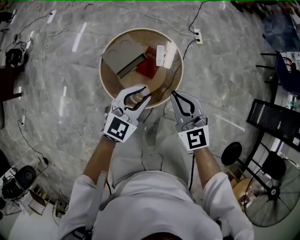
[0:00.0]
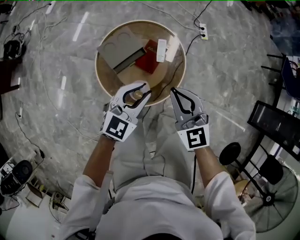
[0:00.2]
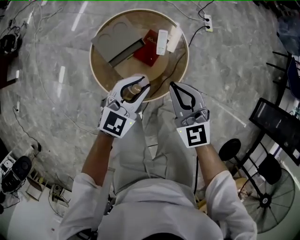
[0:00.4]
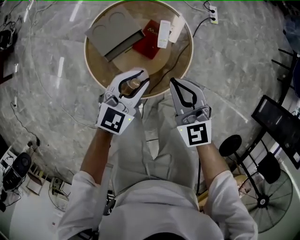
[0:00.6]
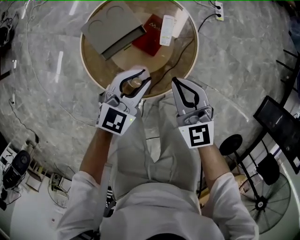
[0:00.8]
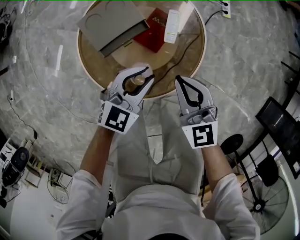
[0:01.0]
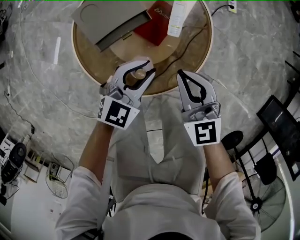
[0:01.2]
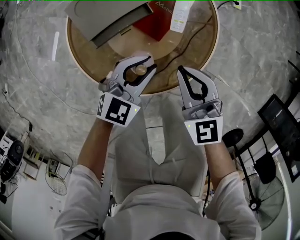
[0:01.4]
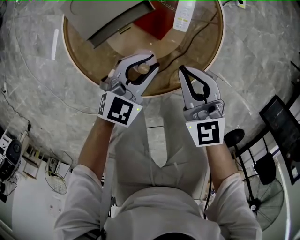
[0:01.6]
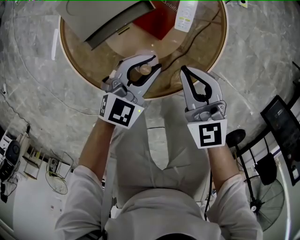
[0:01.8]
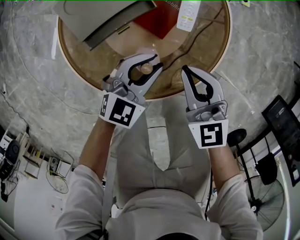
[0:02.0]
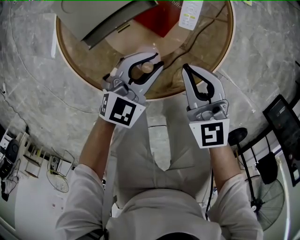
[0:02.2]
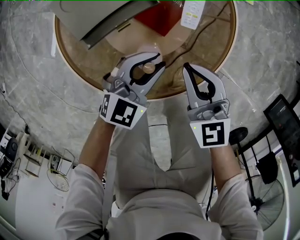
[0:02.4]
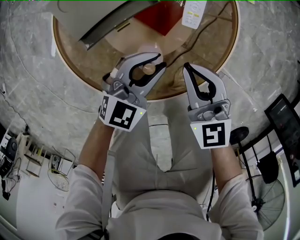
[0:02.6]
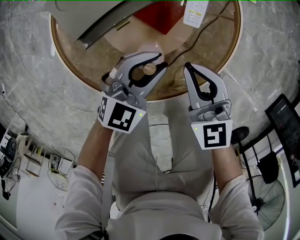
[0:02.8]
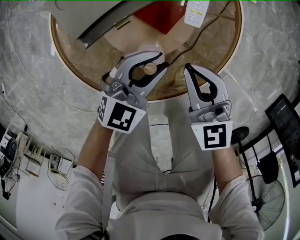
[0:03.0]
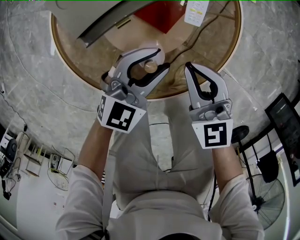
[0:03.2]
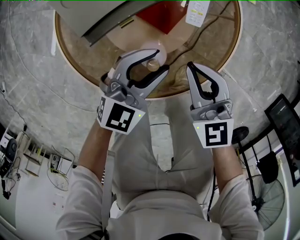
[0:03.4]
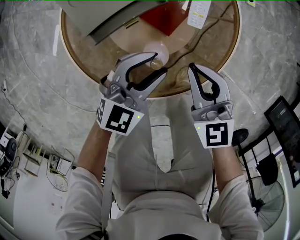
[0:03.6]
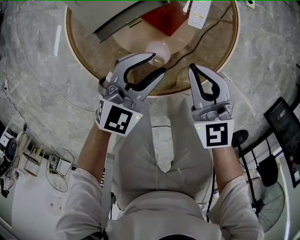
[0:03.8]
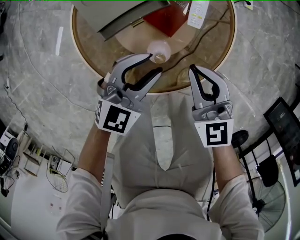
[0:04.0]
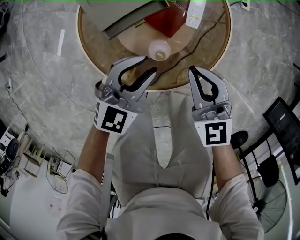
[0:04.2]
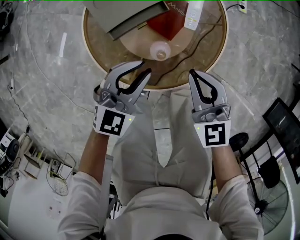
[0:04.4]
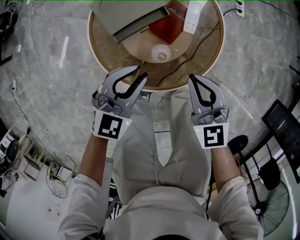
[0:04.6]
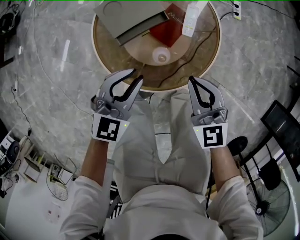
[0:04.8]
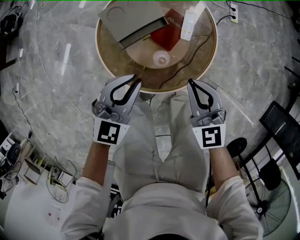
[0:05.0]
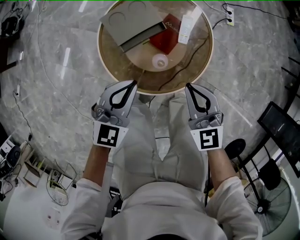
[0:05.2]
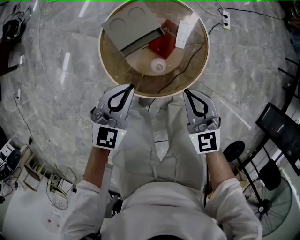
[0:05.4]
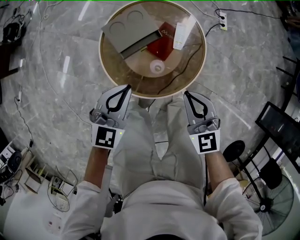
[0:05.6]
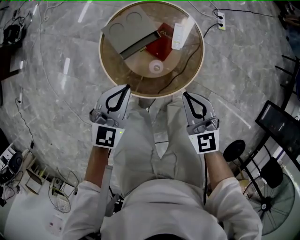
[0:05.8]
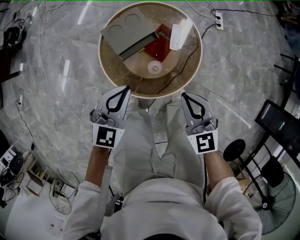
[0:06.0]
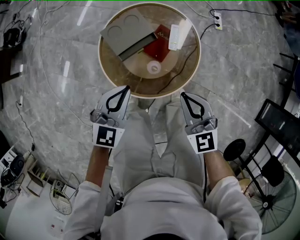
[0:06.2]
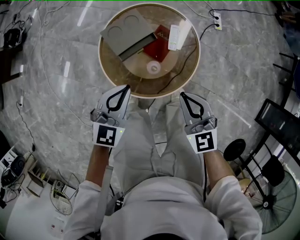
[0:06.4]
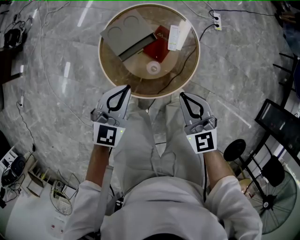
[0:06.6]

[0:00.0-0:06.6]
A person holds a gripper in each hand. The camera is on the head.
0:00.0 to 0:01.6: The grippers both shift downward by some 35 cm.
0:01.6 to 0:03.2: The right gripper travels downward by roughly 5 cm.
0:03.2 to 0:05.0: The right gripper shifts about 20 cm upward. The left gripper goes approximately 25 cm upward and to the left, and closes.
0:05.0 to 0:06.6: The two grippers go some 10 cm upward.

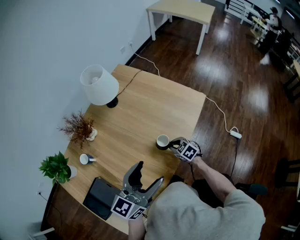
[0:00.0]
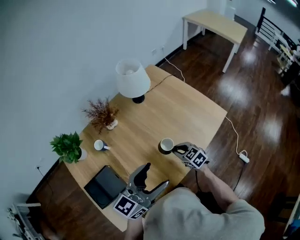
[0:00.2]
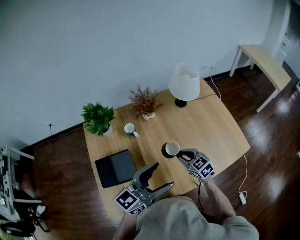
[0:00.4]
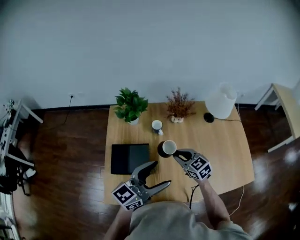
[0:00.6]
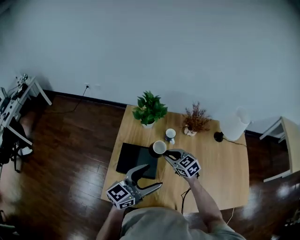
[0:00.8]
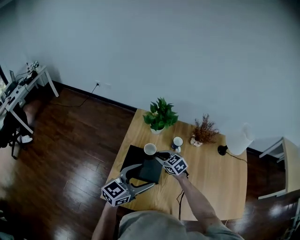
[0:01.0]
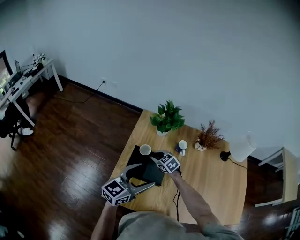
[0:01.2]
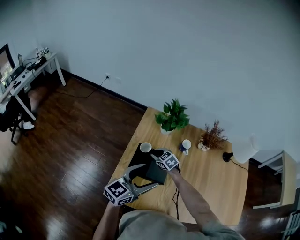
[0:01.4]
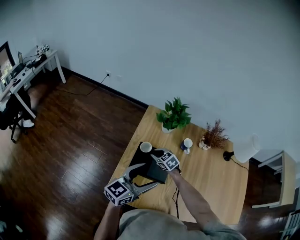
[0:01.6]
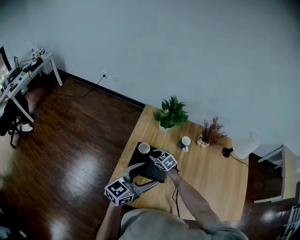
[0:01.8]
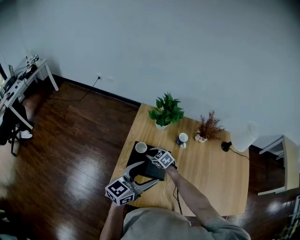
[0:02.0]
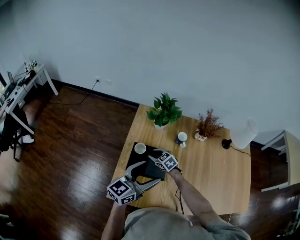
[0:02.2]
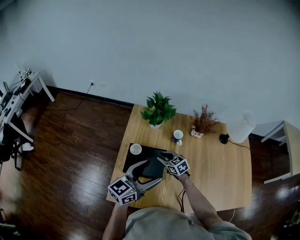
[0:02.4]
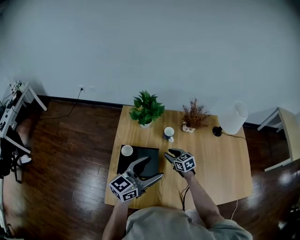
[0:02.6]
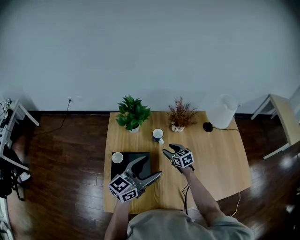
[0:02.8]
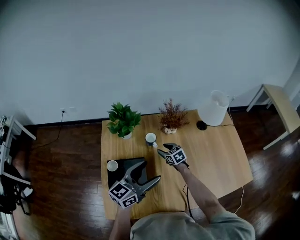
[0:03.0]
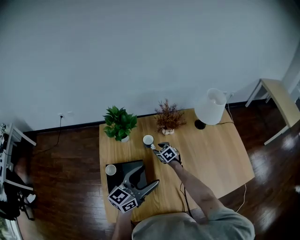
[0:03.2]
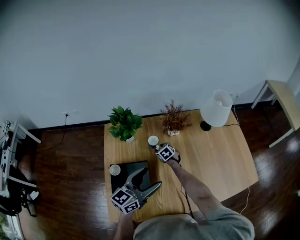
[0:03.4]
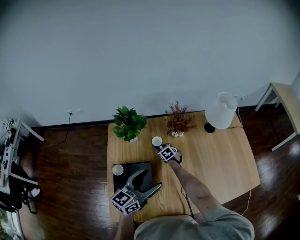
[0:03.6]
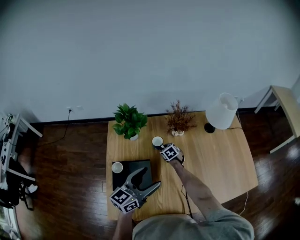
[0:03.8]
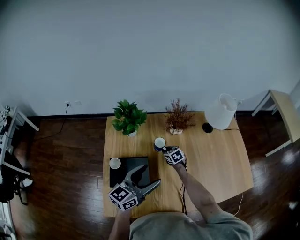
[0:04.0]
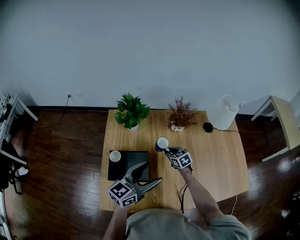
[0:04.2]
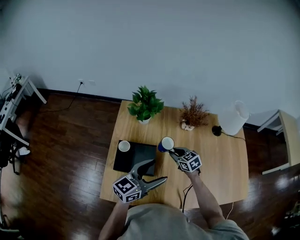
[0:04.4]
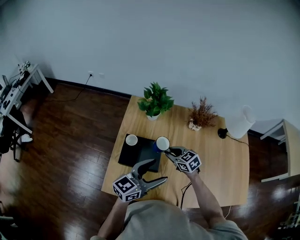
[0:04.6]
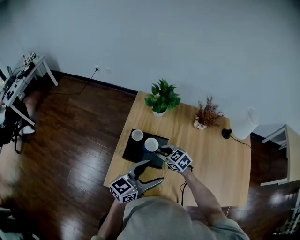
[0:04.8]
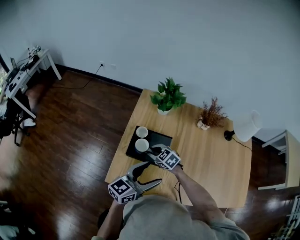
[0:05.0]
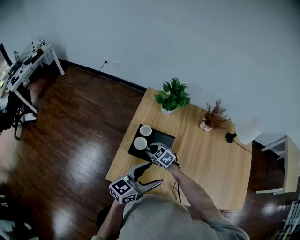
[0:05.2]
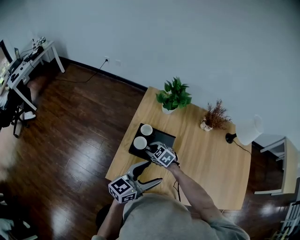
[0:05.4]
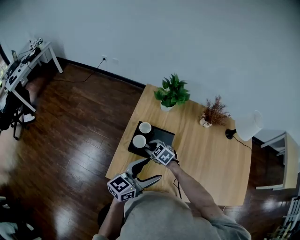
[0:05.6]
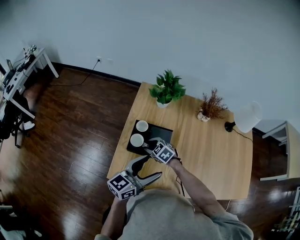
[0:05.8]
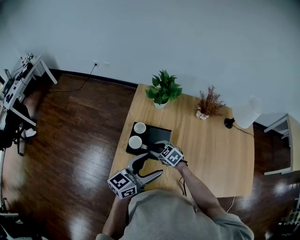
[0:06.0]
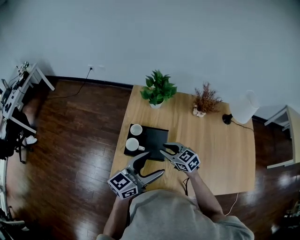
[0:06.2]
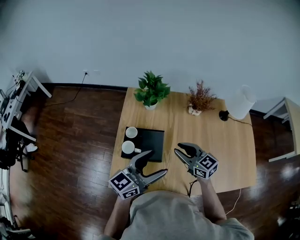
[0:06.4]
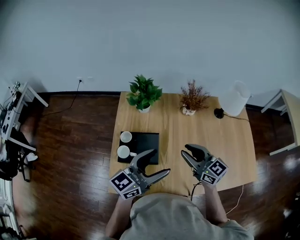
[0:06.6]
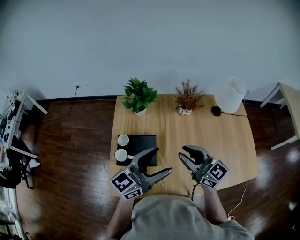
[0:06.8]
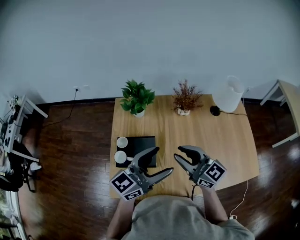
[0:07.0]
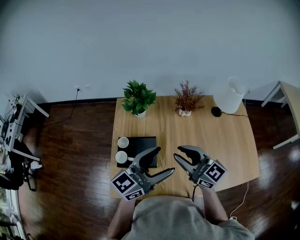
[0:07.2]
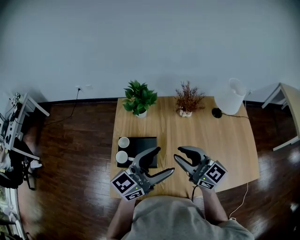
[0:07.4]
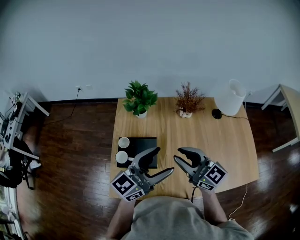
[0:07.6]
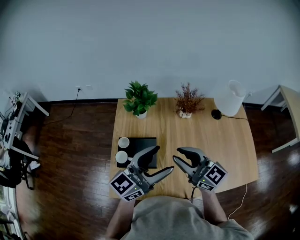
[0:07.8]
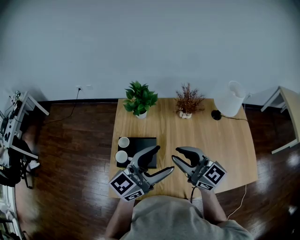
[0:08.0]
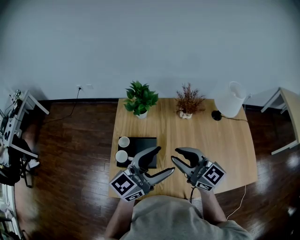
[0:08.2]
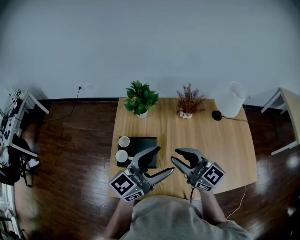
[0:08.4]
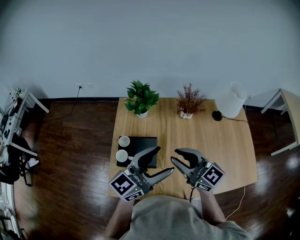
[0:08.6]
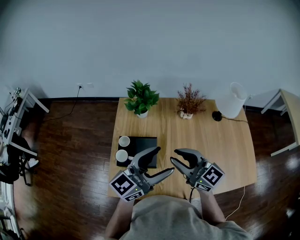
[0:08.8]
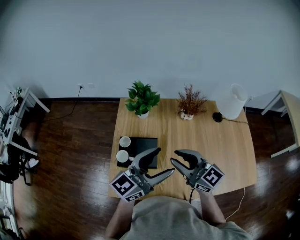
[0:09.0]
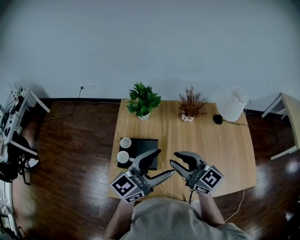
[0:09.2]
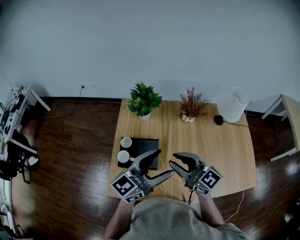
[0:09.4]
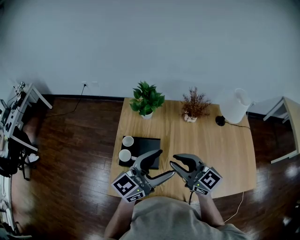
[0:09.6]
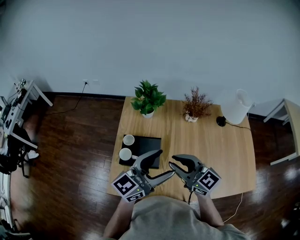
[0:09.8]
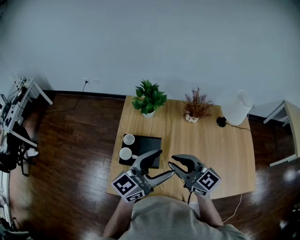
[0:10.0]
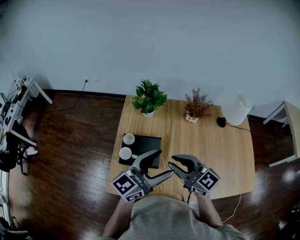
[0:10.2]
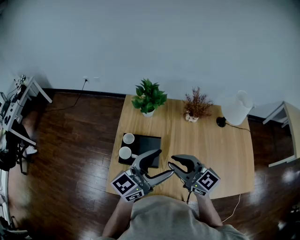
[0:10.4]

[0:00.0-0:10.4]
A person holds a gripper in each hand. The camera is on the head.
0:00.0 to 0:01.4: Both grippers are carried roughly 50 cm. The left gripper rotates roughly 50 degrees, while the right gripper swivels about 70 degrees.
0:01.4 to 0:03.0: The left gripper shifts by some 15 cm. The right gripper changes place by about 25 cm, rotates approximately 40 degrees, and opens up.
0:03.0 to 0:04.4: The right gripper heads backward, covering approximately 10 cm, and closes its fingers.
0:04.4 to 0:06.0: The left gripper travels to the left by approximately 10 cm. The right gripper heads to the left, covering some 20 cm, swivels approximately 30 degrees, and opens.
0:06.0 to 0:07.4: The right gripper moves upward and to the right, approximately 35 cm, and tips its fingers upward by about 50 degrees; the left gripper moves to the right and upward, roughly 15 cm.
0:07.4 to 0:10.4: The grippers make only small movements.

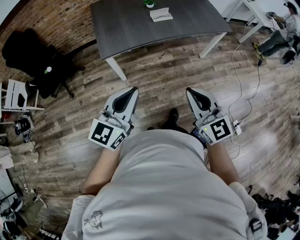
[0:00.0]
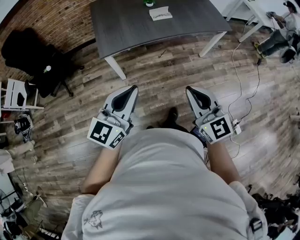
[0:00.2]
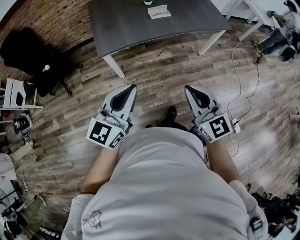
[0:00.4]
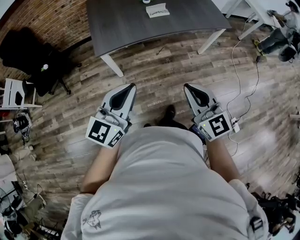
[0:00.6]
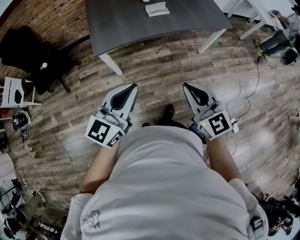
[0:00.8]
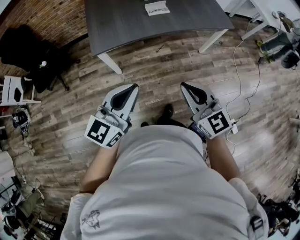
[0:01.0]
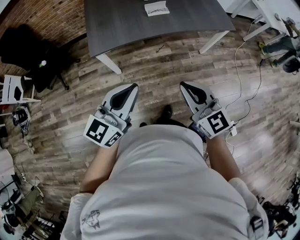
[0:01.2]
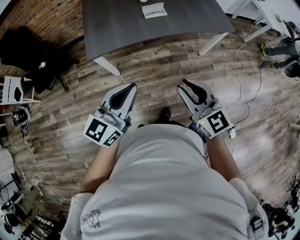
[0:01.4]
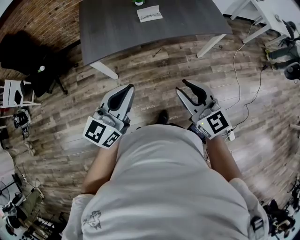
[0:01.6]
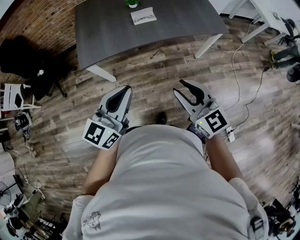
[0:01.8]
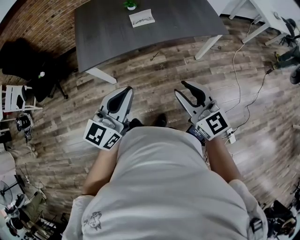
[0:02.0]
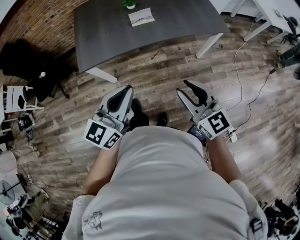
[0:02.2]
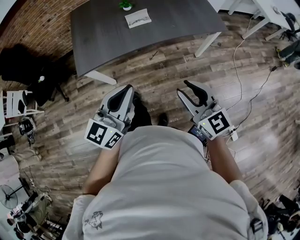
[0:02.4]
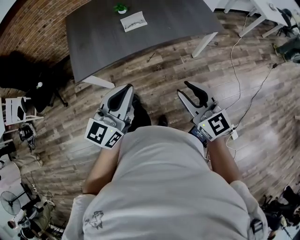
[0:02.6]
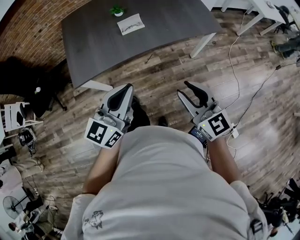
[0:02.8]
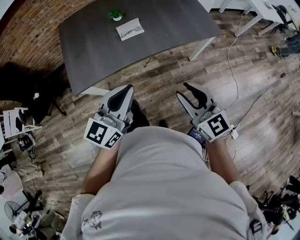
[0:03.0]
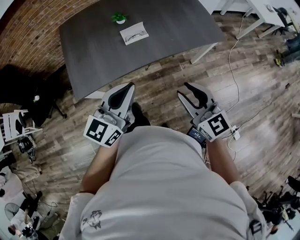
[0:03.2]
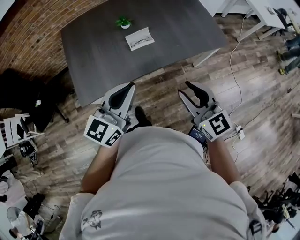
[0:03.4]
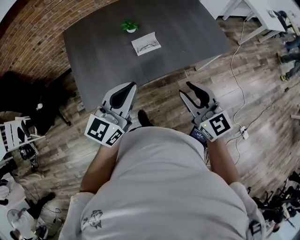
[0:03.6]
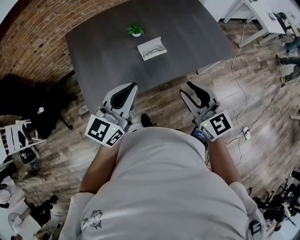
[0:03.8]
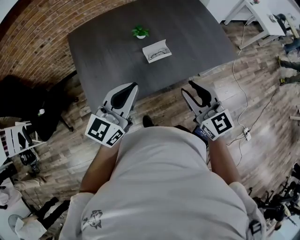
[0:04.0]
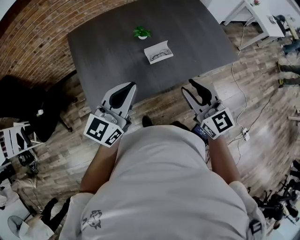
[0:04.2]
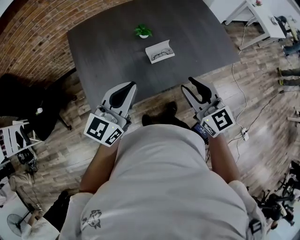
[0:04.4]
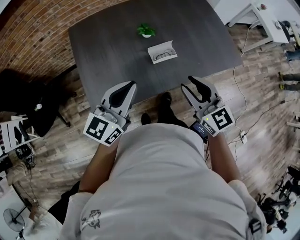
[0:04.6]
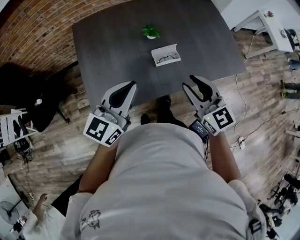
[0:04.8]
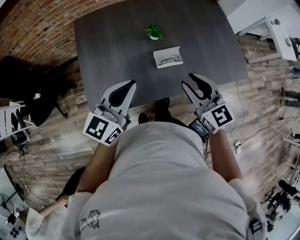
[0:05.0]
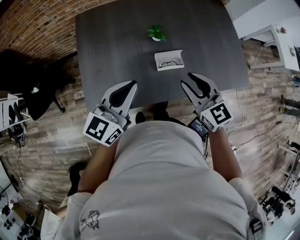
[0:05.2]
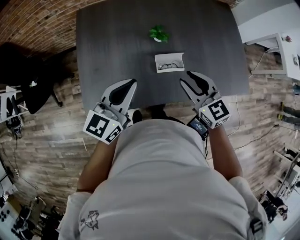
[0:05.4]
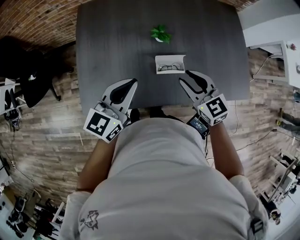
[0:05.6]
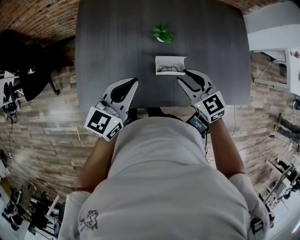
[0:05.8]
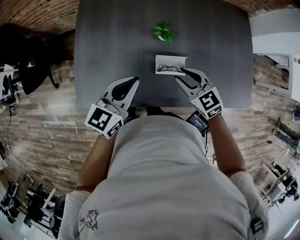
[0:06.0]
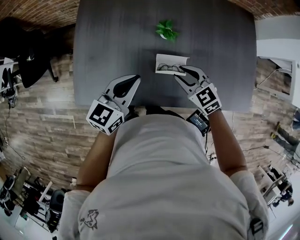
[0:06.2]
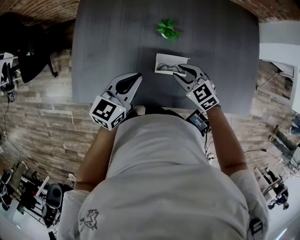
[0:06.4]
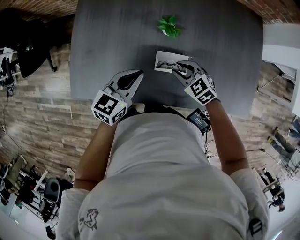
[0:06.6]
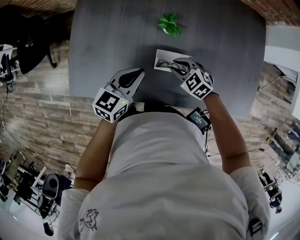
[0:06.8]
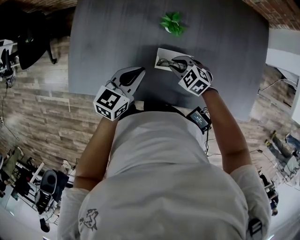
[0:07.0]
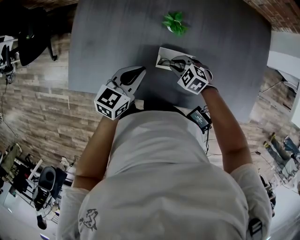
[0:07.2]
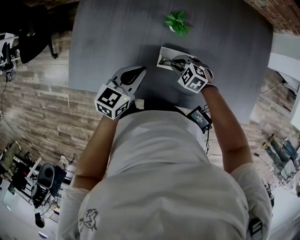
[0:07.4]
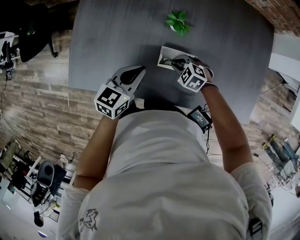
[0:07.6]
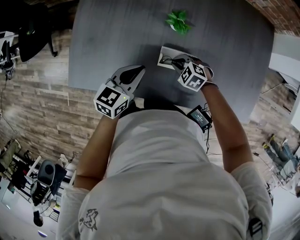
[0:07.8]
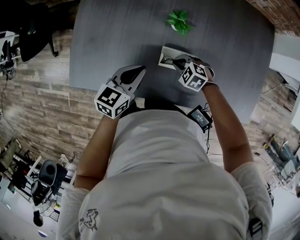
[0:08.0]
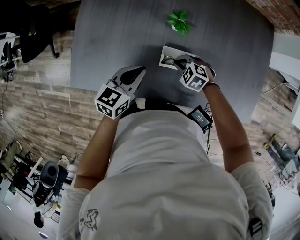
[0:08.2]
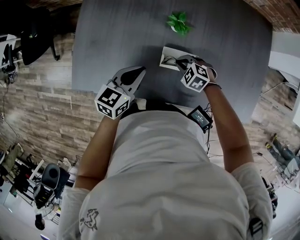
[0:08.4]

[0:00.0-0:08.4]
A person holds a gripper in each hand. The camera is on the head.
0:00.0 to 0:01.4: The right gripper goes some 15 cm forward and to the right, and opens up, while the left gripper moves to the right and forward, some 15 cm.
0:01.4 to 0:02.8: The right gripper moves to the right and forward, approximately 15 cm, while the left gripper goes some 15 cm forward and to the right.
0:02.8 to 0:04.2: Both grippers move forward and to the left, roughly 30 cm.
0:04.2 to 0:05.6: The right gripper moves forward and downward, approximately 25 cm, and rotates some 30 degrees. The left gripper is displaced forward and downward by roughly 15 cm, and rotates approximately 20 degrees.
0:05.6 to 0:07.0: The left gripper is displaced downward by roughly 15 cm, while the right gripper is displaced downward by some 25 cm, and turns by roughly 50 degrees.
0:07.0 to 0:08.4: The grippers make only small movements.
